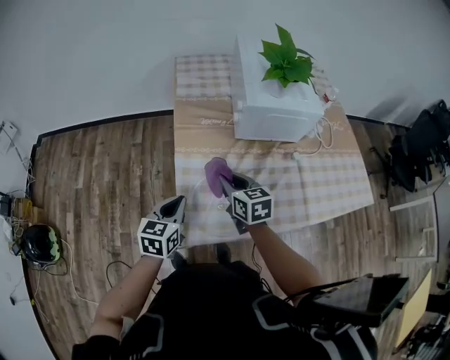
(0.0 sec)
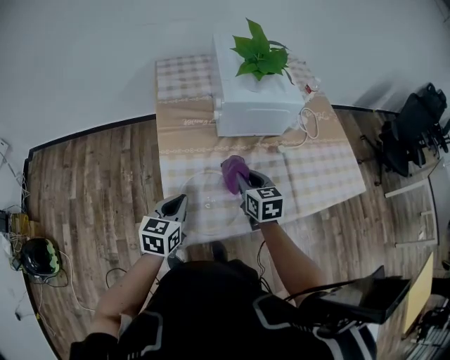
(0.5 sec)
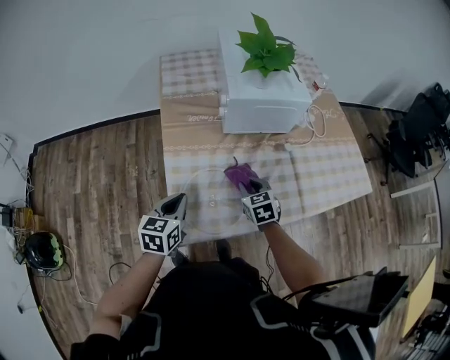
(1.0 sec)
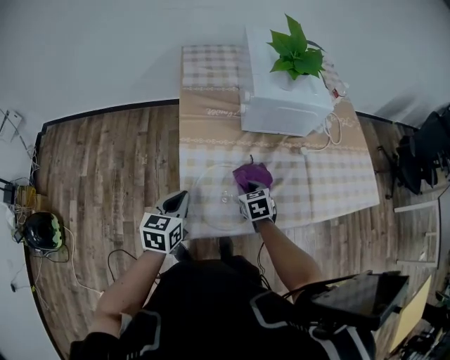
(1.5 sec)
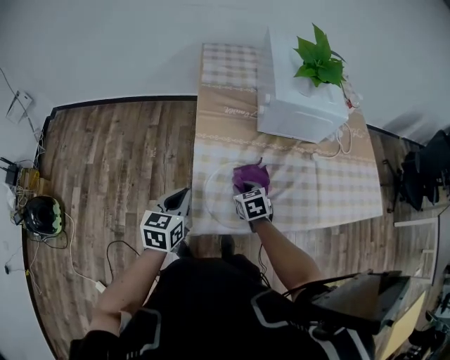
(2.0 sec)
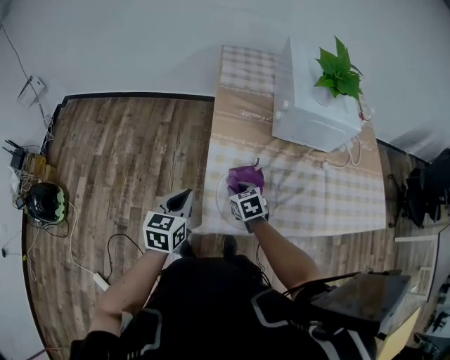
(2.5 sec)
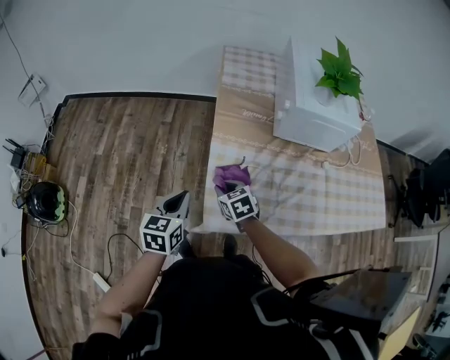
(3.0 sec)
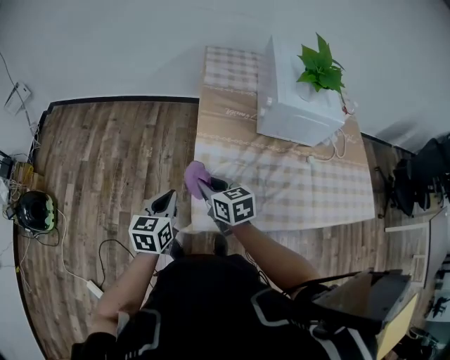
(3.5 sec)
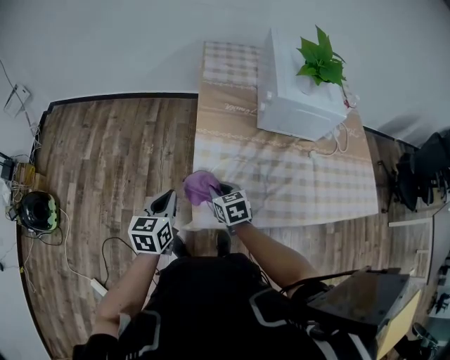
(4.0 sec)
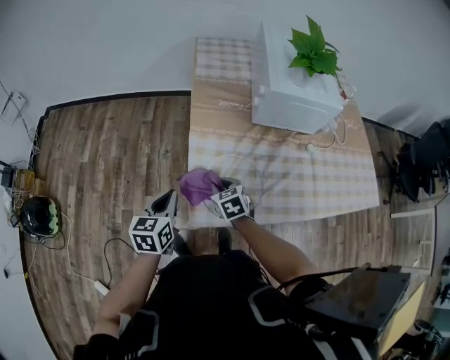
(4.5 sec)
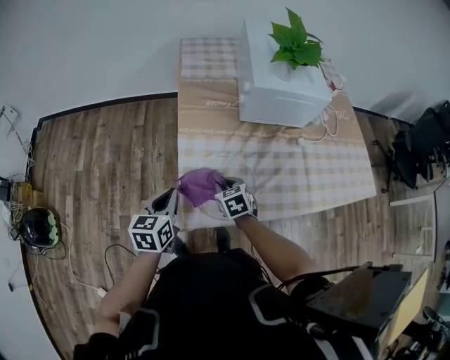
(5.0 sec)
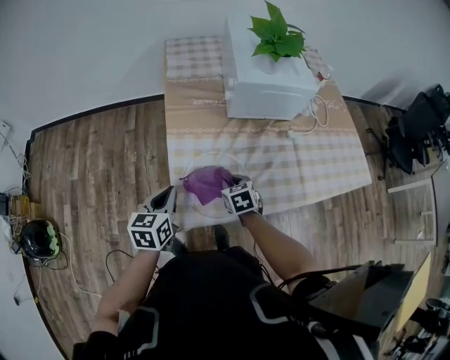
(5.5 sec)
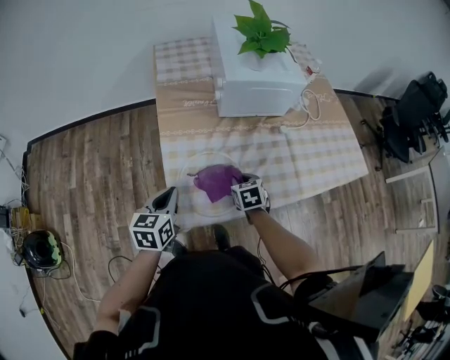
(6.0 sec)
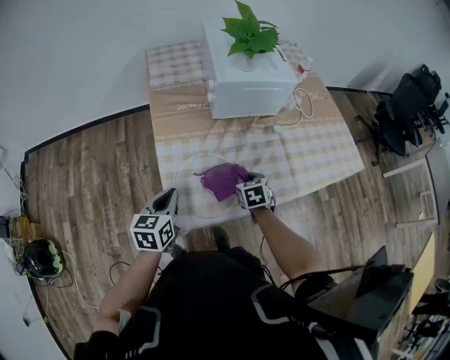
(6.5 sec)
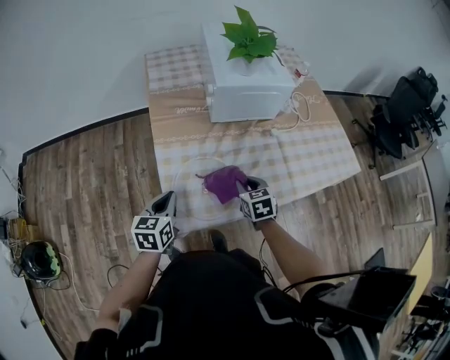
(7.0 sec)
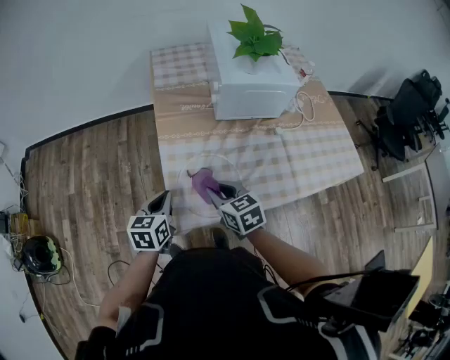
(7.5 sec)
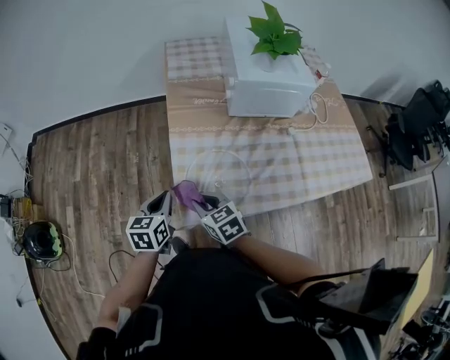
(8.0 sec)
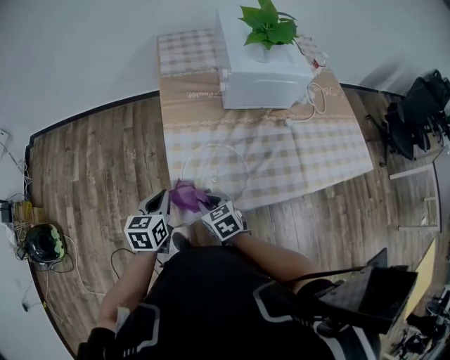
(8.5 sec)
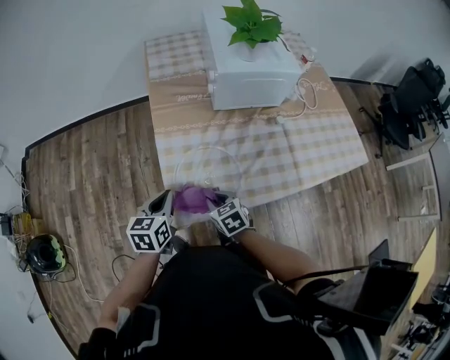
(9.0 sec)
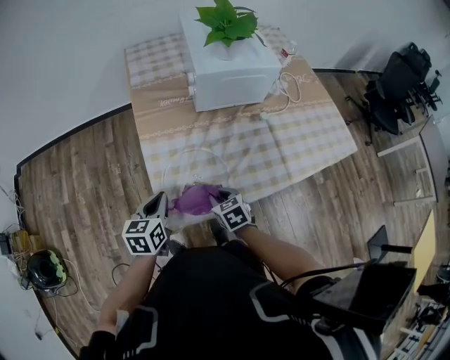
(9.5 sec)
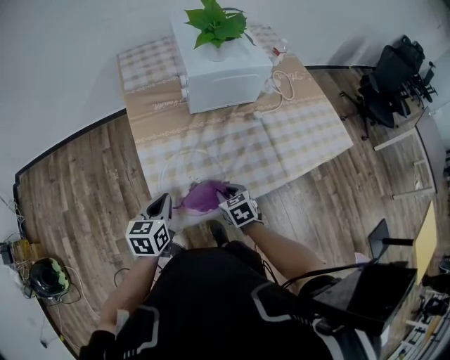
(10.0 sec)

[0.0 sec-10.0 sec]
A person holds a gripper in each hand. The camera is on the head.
0.0 sec to 2.0 sec: The right gripper moves downward, some 15 cm, and changes its angle by about 30 degrees.
2.0 sec to 4.0 sec: The left gripper heads to the left, covering some 5 cm. The right gripper heads to the left, covering approximately 10 cm.
4.0 sec to 6.0 sec: The right gripper shifts about 20 cm to the right, and changes its angle by some 20 degrees. Meanwhile the left gripper shifts approximately 10 cm to the right.
6.0 sec to 8.0 sec: The left gripper ends up approximately 5 cm from where it was. Meanwhile the right gripper shifts by some 20 cm, and swivels some 30 degrees.
8.0 sec to 10.0 sec: The left gripper shifts some 10 cm to the right; the right gripper travels to the right and downward by some 20 cm, and changes its angle by roughly 20 degrees.

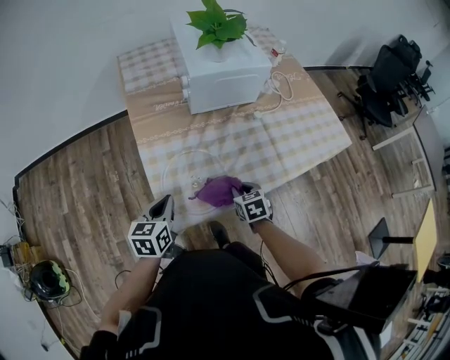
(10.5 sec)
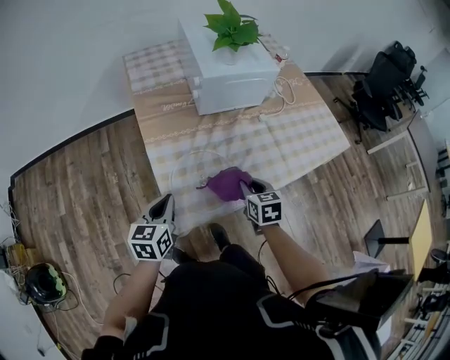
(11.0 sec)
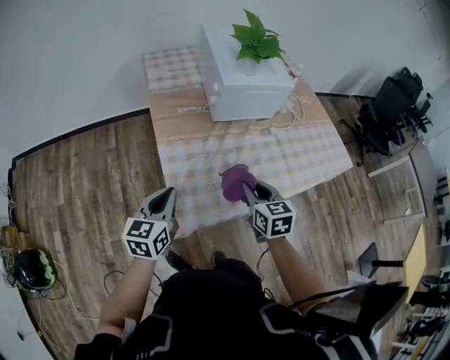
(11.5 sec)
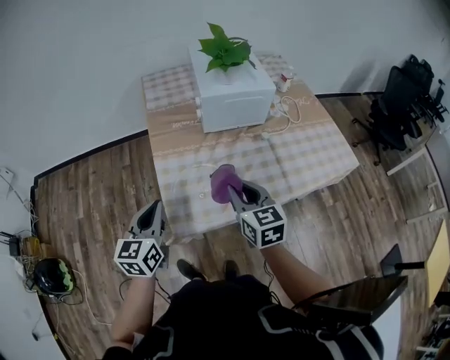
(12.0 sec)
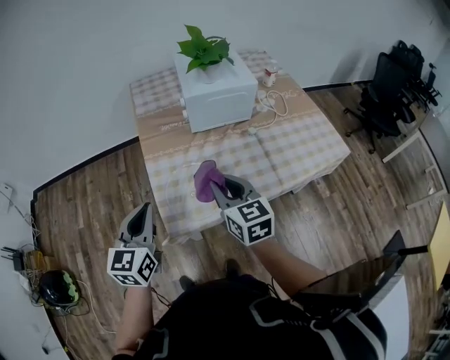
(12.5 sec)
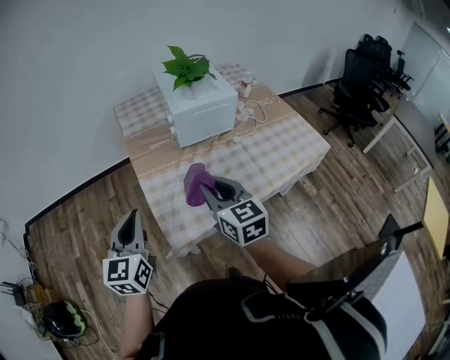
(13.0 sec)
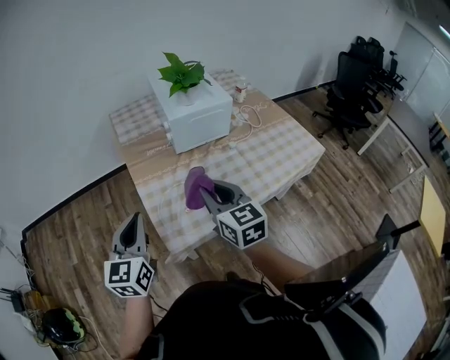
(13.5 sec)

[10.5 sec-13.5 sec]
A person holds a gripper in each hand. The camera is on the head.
10.5 sec to 12.0 sec: The left gripper is displaced upward by some 15 cm; the right gripper heads upward, covering roughly 20 cm, and angles its fingers upward, by roughly 30 degrees.
12.0 sec to 13.5 sec: Both grippers move upward, some 10 cm.

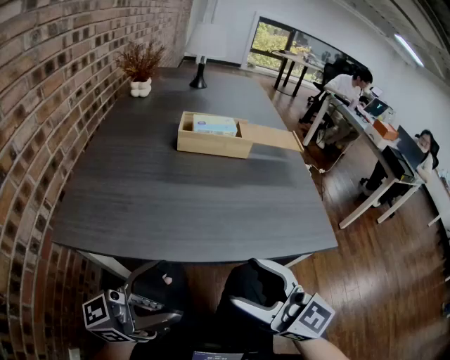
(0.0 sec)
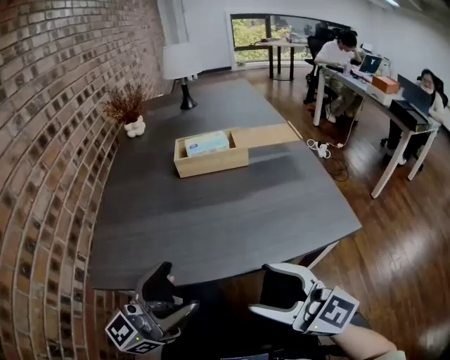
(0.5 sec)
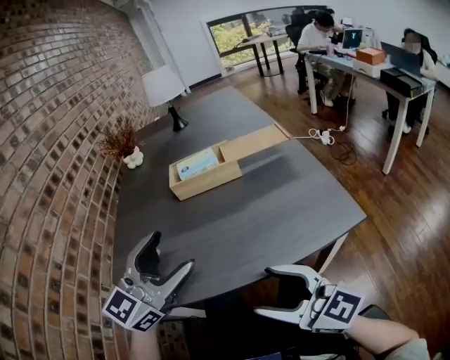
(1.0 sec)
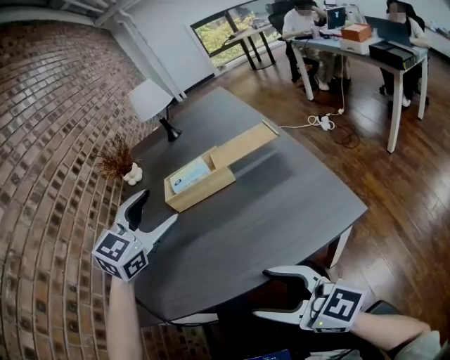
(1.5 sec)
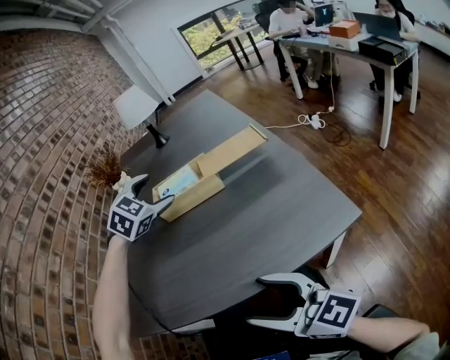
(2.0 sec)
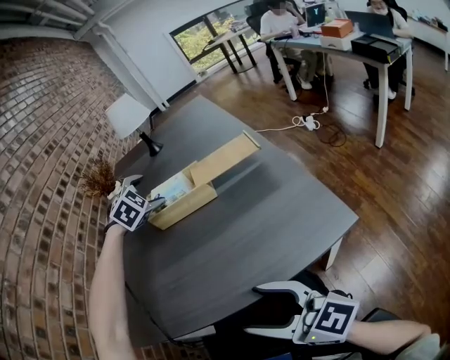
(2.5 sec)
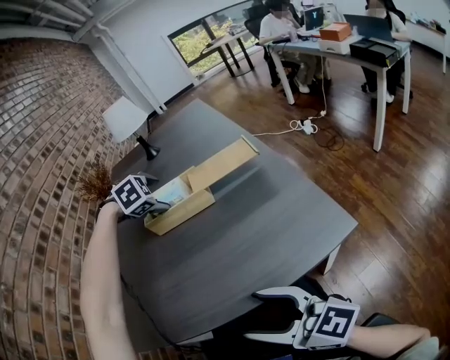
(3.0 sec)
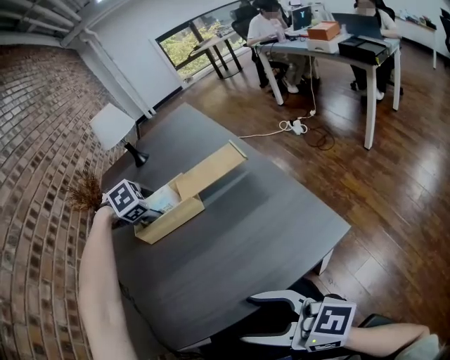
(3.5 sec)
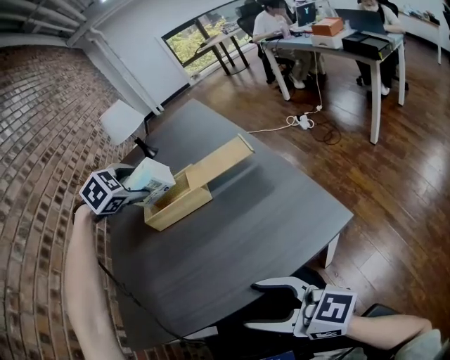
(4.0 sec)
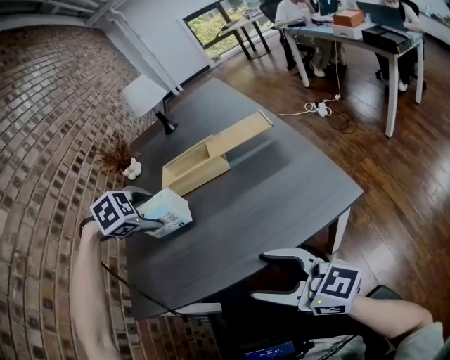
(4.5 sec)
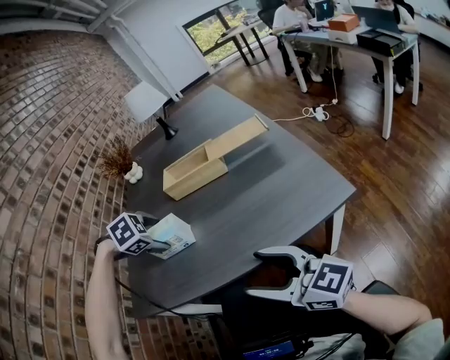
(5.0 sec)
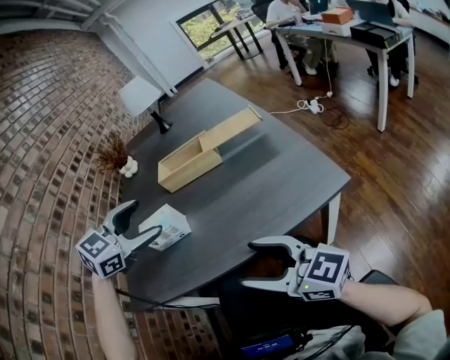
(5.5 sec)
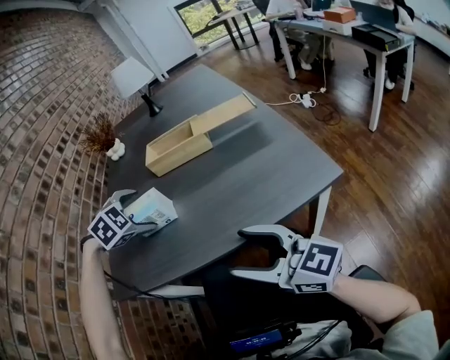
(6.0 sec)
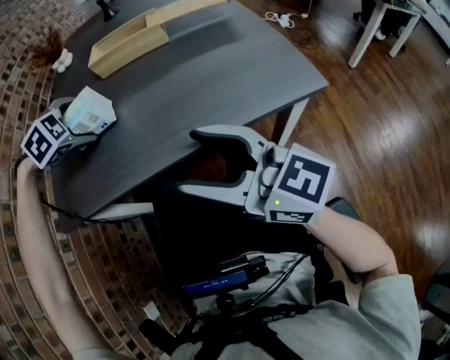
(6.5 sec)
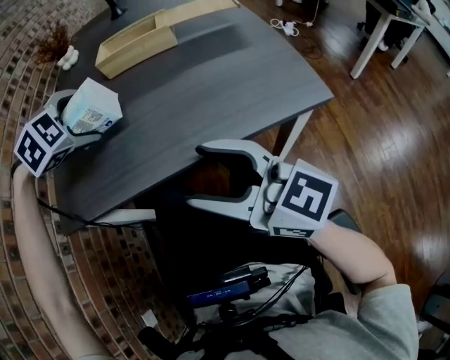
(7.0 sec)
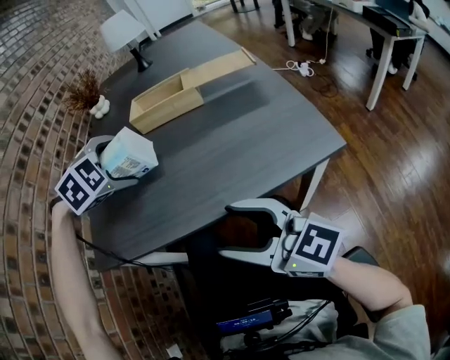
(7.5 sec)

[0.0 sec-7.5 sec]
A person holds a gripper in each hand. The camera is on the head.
0.0 sec to 2.0 sec: The left gripper moves forward, about 40 cm, and angles its fingers downward, by about 60 degrees. Meanwhile the right gripper moves roughly 5 cm.
2.0 sec to 4.0 sec: The left gripper moves approximately 10 cm downward and comes back, and rotates about 30 degrees.
4.0 sec to 5.5 sec: The left gripper reaches roughly 15 cm downward, then returns, and changes its angle by roughly 40 degrees.
5.5 sec to 7.5 sec: The left gripper heads downward, covering about 5 cm, and rotates some 40 degrees.

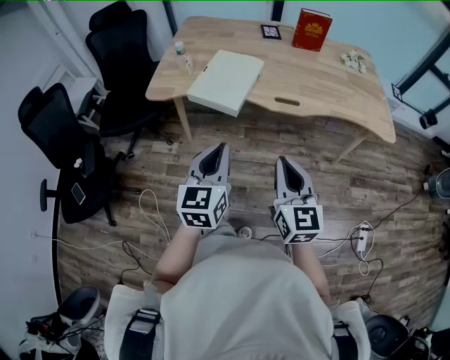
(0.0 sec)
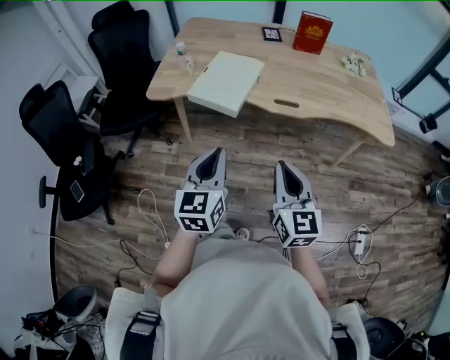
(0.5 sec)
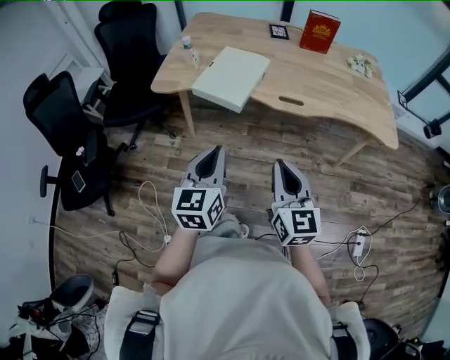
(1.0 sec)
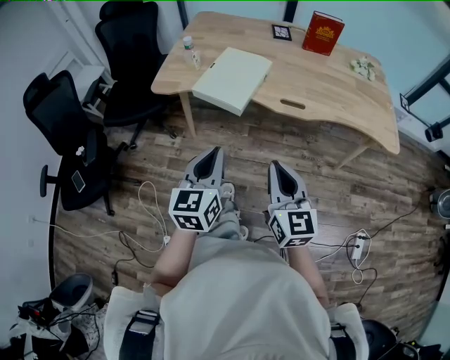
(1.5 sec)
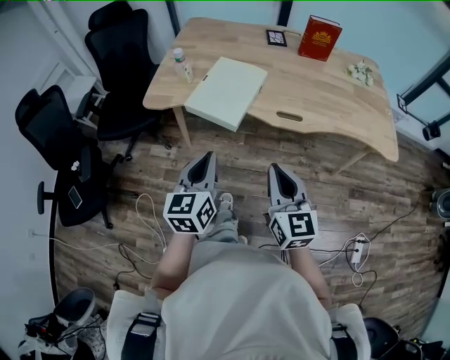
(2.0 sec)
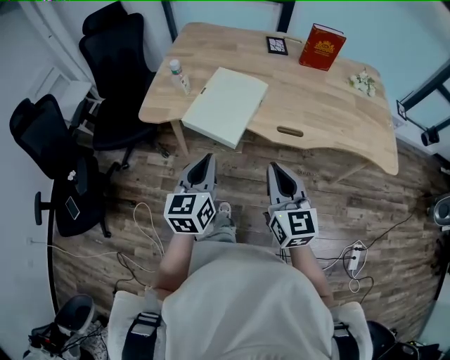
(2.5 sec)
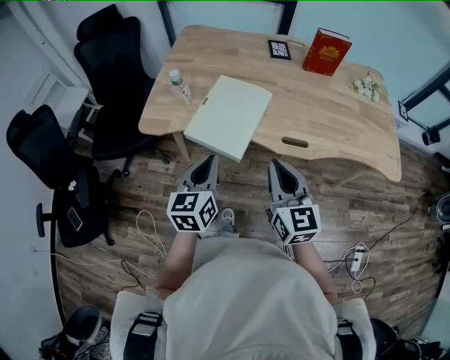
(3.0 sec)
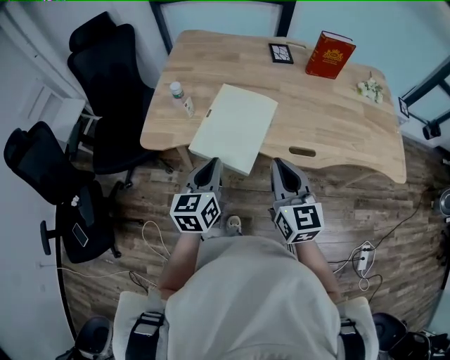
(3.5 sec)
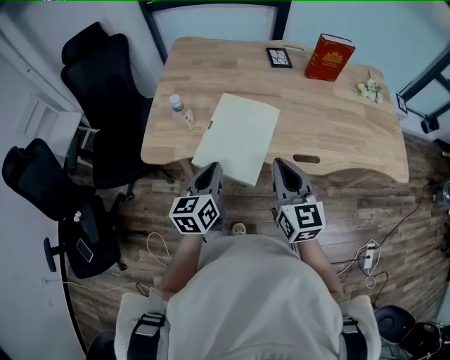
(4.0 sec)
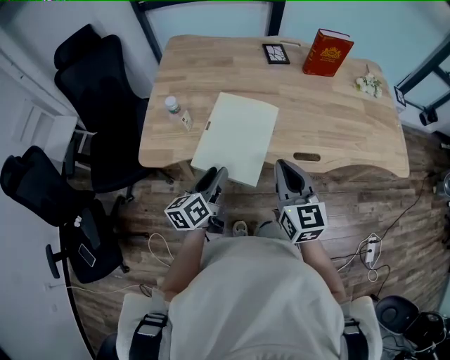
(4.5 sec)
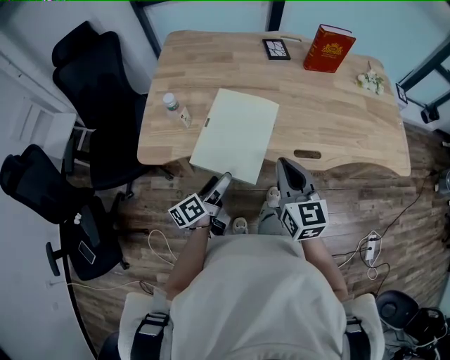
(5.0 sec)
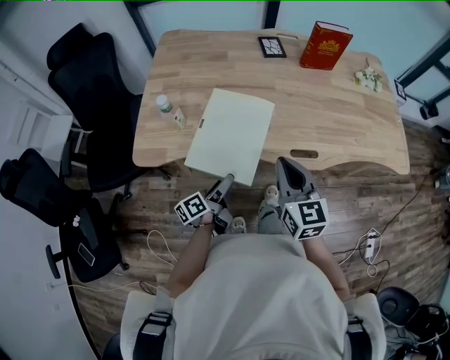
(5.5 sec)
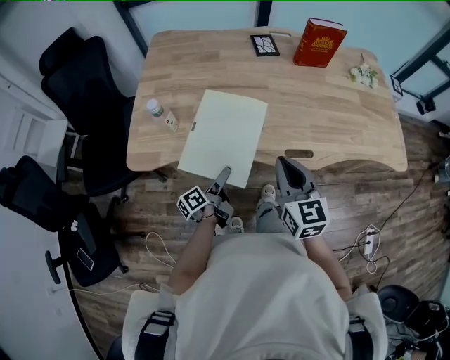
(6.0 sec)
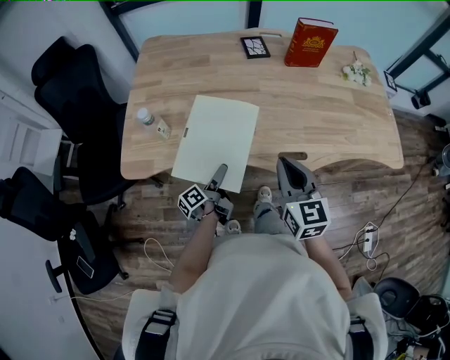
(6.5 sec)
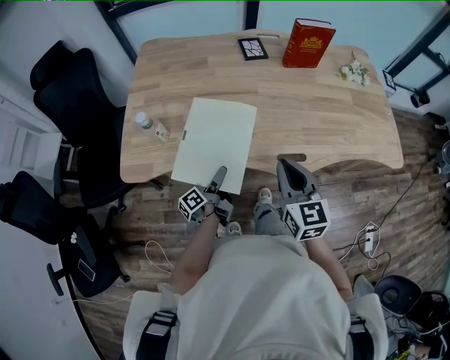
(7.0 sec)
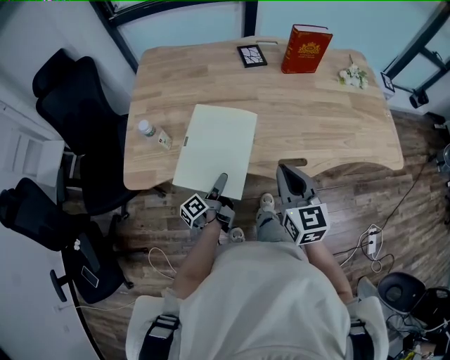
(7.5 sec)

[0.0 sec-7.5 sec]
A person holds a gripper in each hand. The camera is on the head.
0.0 sec to 2.0 sec: Both grippers move forward, roughly 5 cm.
2.0 sec to 4.0 sec: Both grippers move forward, roughly 25 cm.
4.0 sec to 5.5 sec: The left gripper moves downward, approximately 15 cm, rolls counterclockwise, seen from behind, by roughly 50 degrees, and opens up.
5.5 sec to 7.5 sec: The left gripper goes some 5 cm forward.
